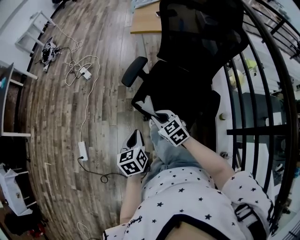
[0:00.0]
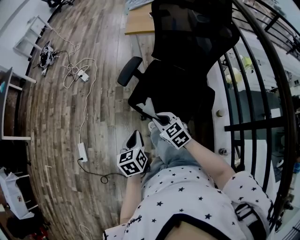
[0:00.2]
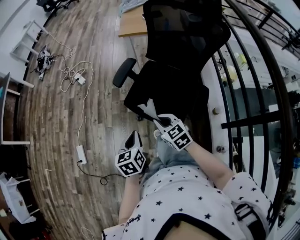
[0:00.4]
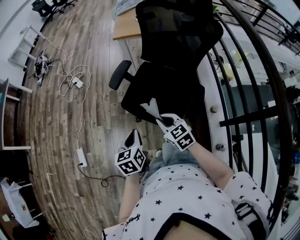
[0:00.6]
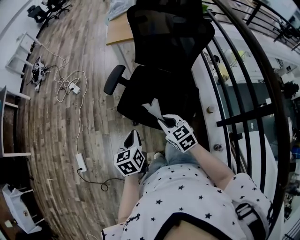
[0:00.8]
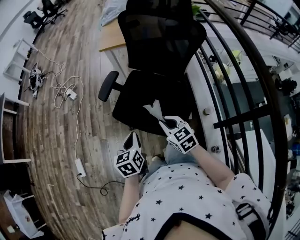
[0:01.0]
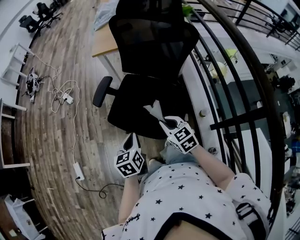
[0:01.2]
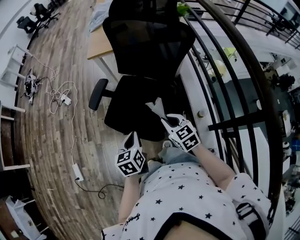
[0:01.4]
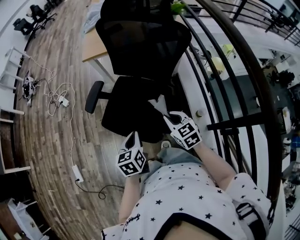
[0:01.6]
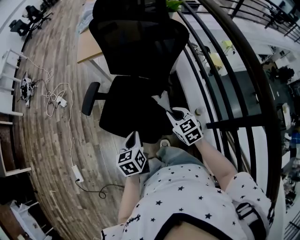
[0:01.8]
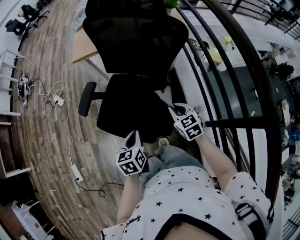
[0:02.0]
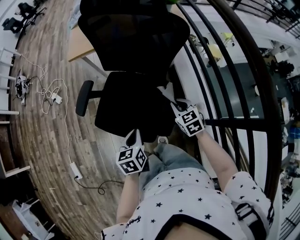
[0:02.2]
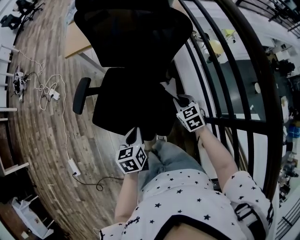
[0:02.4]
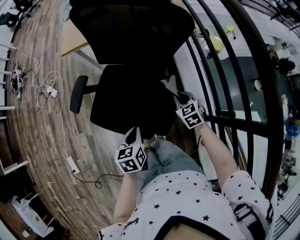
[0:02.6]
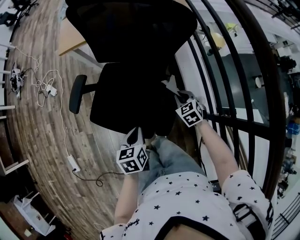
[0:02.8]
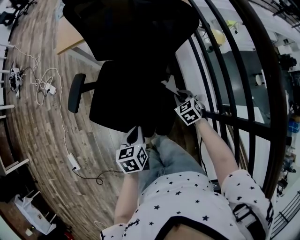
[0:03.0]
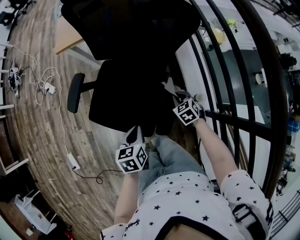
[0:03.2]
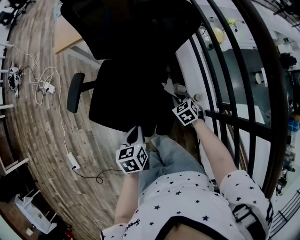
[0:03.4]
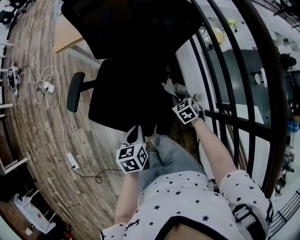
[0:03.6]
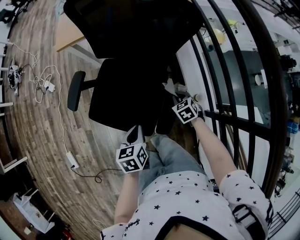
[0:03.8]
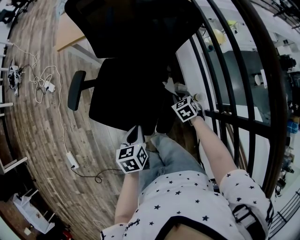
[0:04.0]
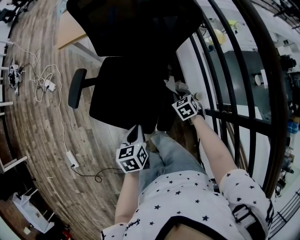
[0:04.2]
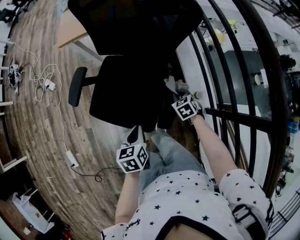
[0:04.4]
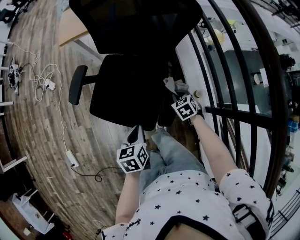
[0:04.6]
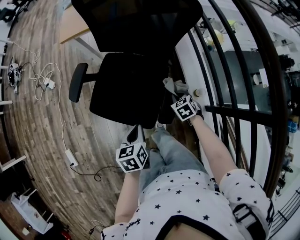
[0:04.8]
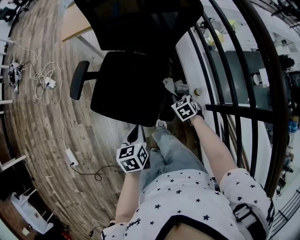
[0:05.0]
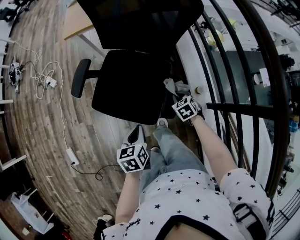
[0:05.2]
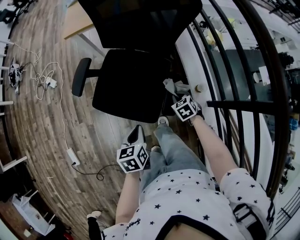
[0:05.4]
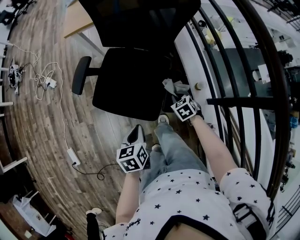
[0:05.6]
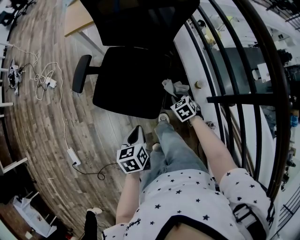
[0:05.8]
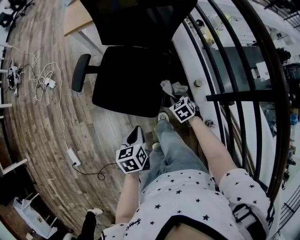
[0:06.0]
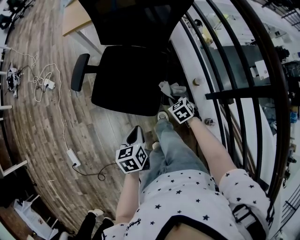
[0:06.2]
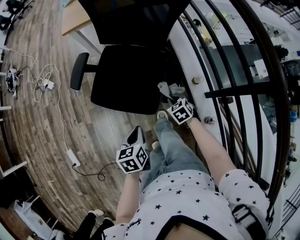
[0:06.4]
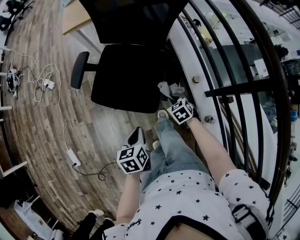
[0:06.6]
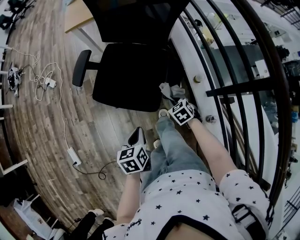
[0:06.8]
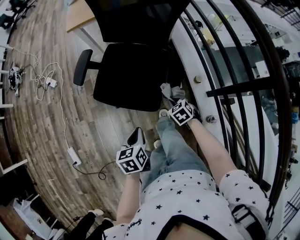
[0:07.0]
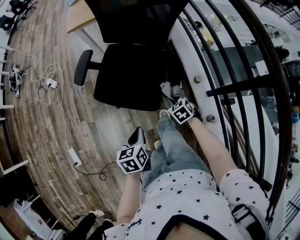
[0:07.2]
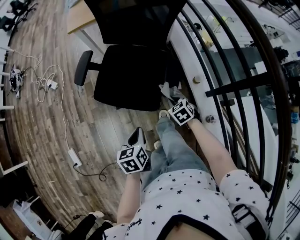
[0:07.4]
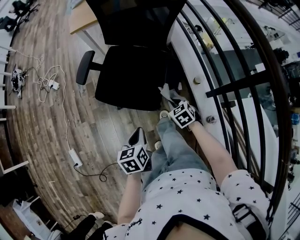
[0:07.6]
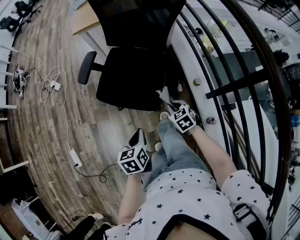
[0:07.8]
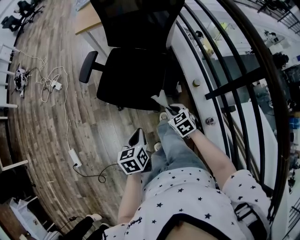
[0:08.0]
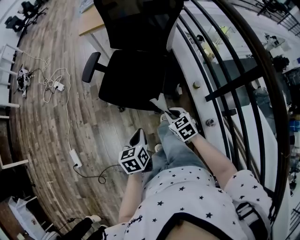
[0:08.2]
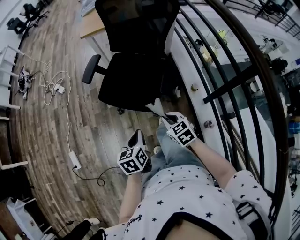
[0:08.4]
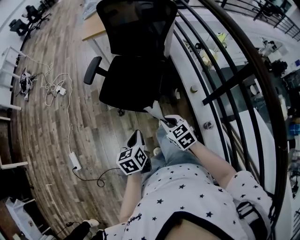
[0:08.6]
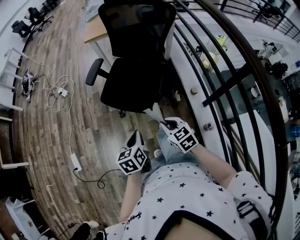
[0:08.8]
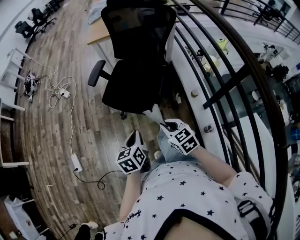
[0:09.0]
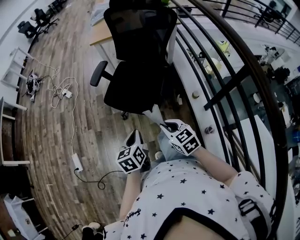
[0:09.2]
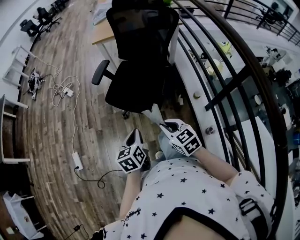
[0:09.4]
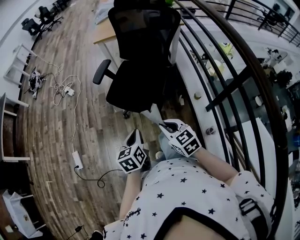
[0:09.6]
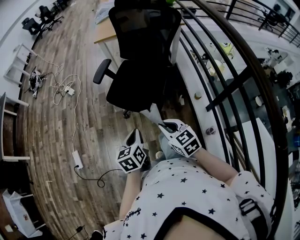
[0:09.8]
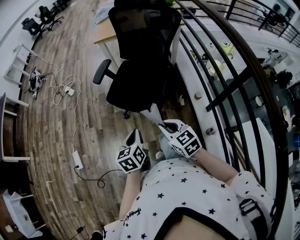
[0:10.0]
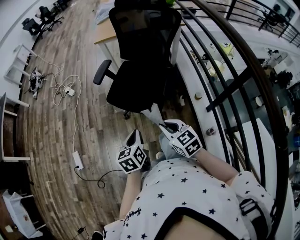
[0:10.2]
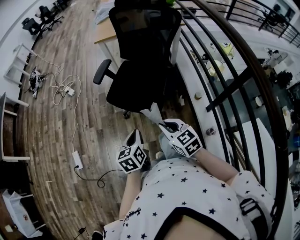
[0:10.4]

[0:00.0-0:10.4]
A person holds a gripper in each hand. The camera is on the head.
0:00.0 to 0:01.4: The grippers both shift to the right by some 20 cm.
0:01.4 to 0:03.0: The left gripper is displaced to the right, downward and forward by some 15 cm; the right gripper travels downward, to the right and forward by some 25 cm, and rotates roughly 20 degrees.
0:03.0 to 0:04.4: The grippers stay close to where they were, moving slightly.
0:04.4 to 0:06.0: The grippers both shift backward and to the left by approximately 15 cm.
0:06.0 to 0:07.4: Both grippers move backward, approximately 5 cm.
0:07.4 to 0:09.0: The left gripper goes some 10 cm backward and upward. Meanwhile the right gripper shifts approximately 25 cm backward, upward and to the left, and rotates about 20 degrees.
0:09.0 to 0:10.4: There are only small adjustments of the grippers.

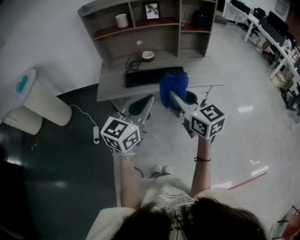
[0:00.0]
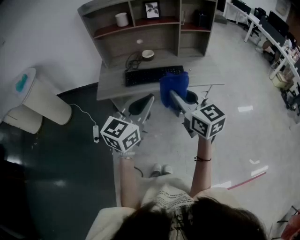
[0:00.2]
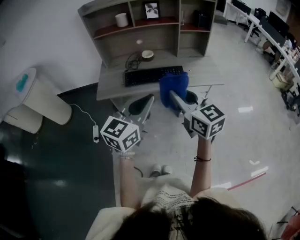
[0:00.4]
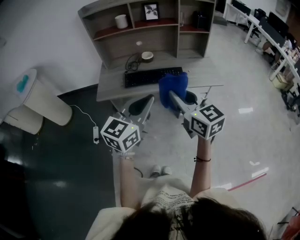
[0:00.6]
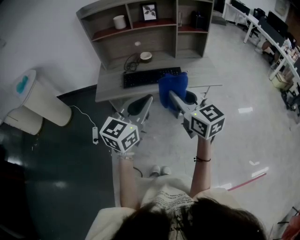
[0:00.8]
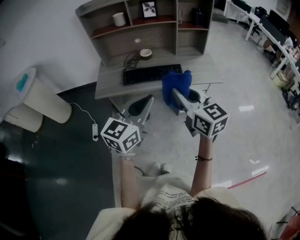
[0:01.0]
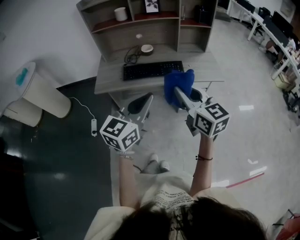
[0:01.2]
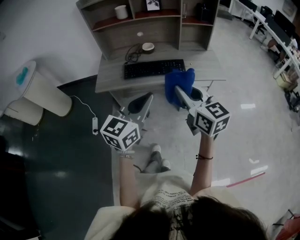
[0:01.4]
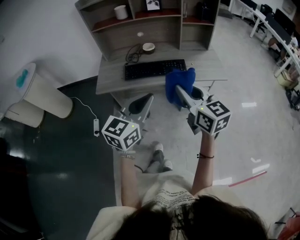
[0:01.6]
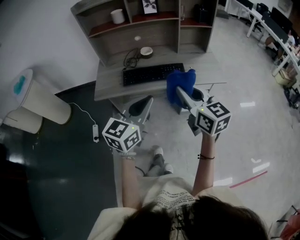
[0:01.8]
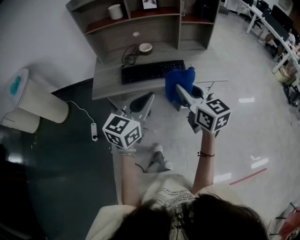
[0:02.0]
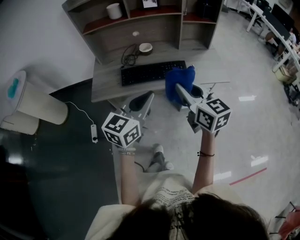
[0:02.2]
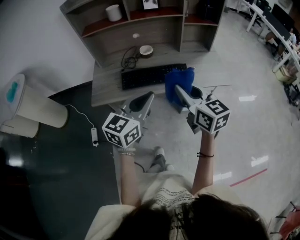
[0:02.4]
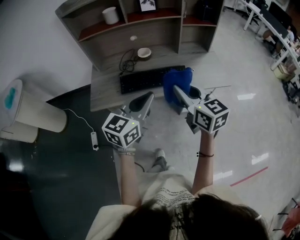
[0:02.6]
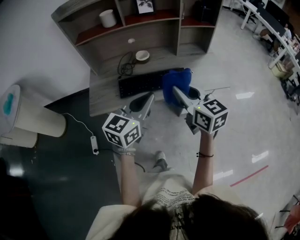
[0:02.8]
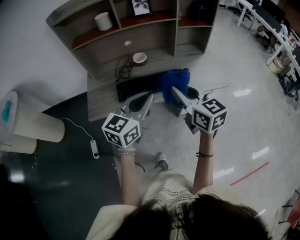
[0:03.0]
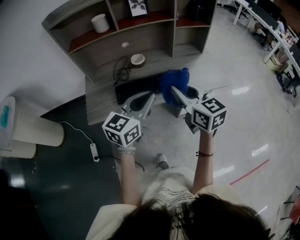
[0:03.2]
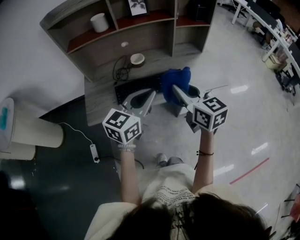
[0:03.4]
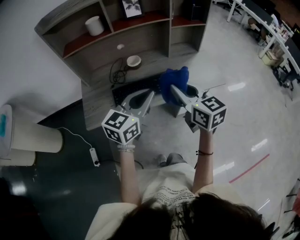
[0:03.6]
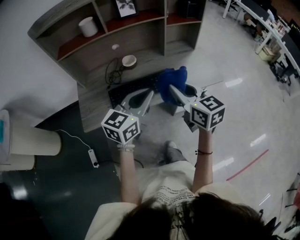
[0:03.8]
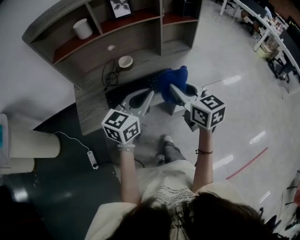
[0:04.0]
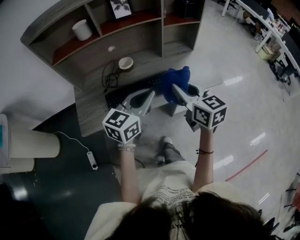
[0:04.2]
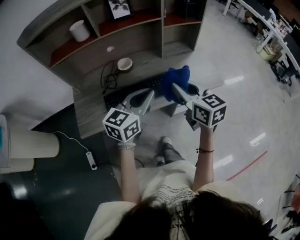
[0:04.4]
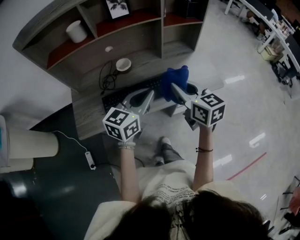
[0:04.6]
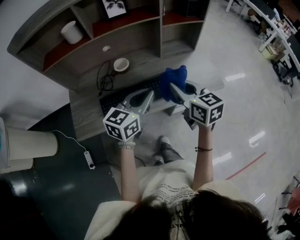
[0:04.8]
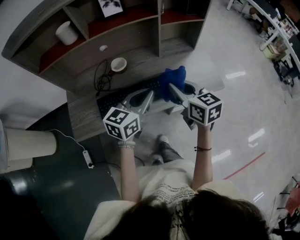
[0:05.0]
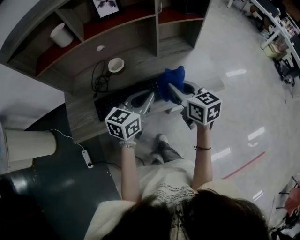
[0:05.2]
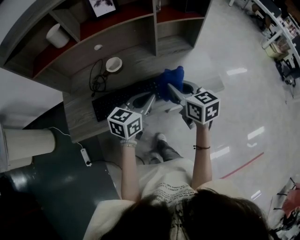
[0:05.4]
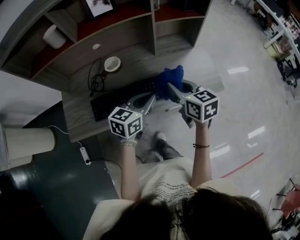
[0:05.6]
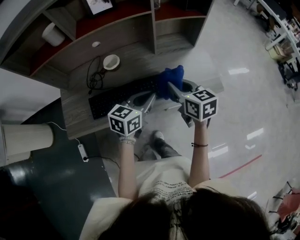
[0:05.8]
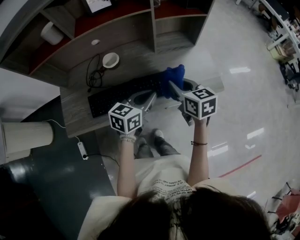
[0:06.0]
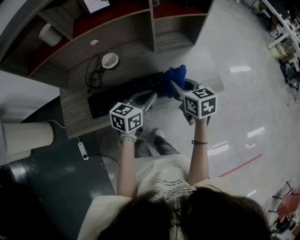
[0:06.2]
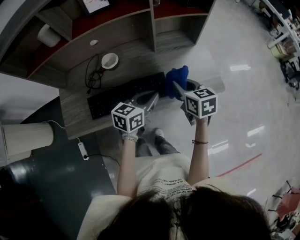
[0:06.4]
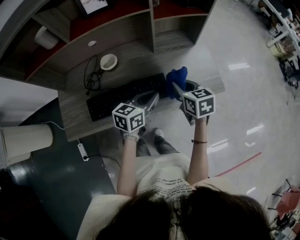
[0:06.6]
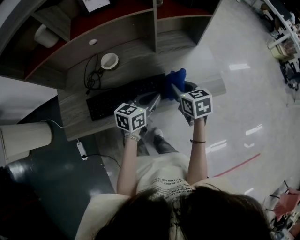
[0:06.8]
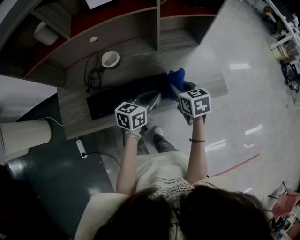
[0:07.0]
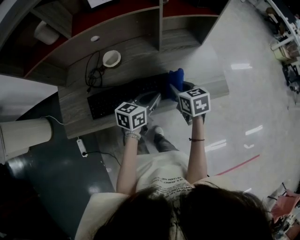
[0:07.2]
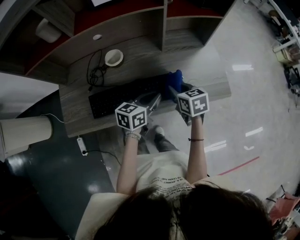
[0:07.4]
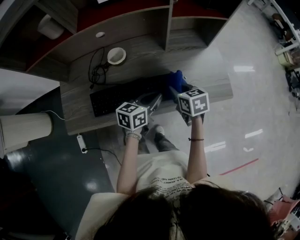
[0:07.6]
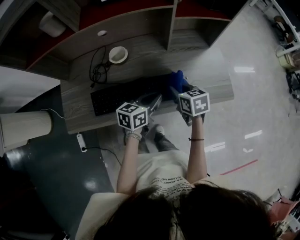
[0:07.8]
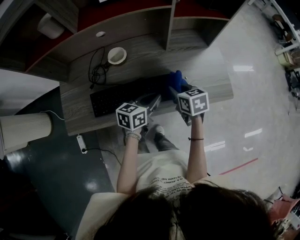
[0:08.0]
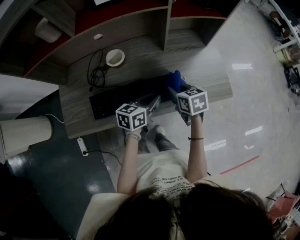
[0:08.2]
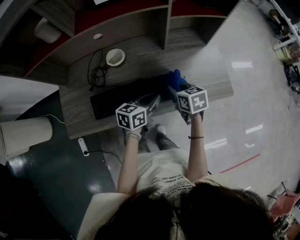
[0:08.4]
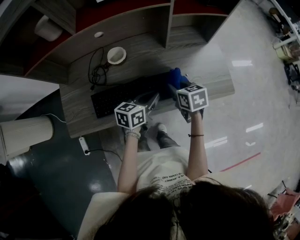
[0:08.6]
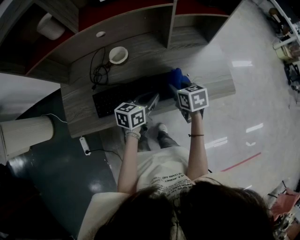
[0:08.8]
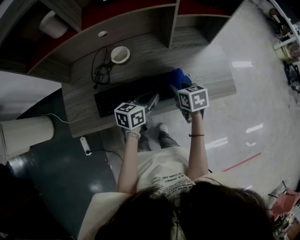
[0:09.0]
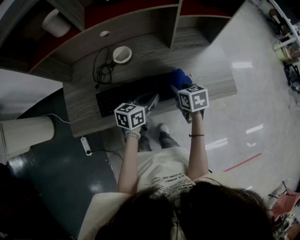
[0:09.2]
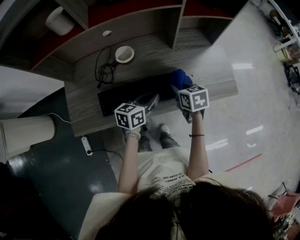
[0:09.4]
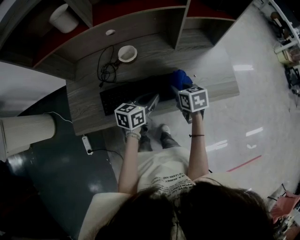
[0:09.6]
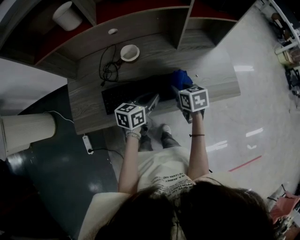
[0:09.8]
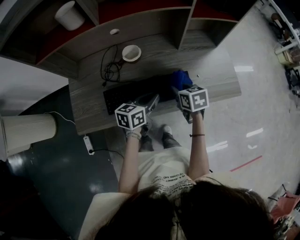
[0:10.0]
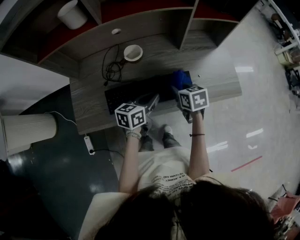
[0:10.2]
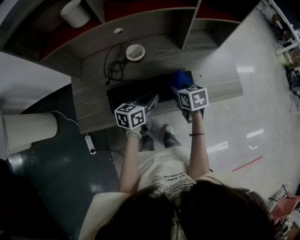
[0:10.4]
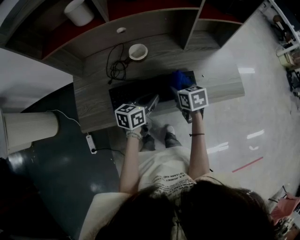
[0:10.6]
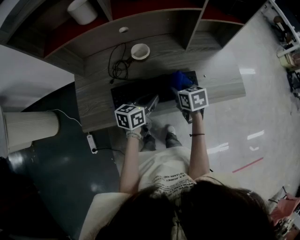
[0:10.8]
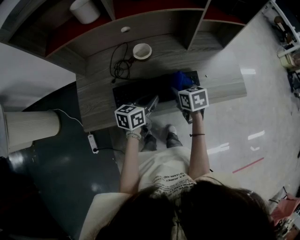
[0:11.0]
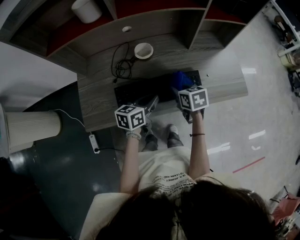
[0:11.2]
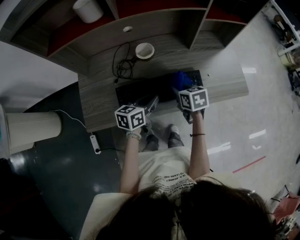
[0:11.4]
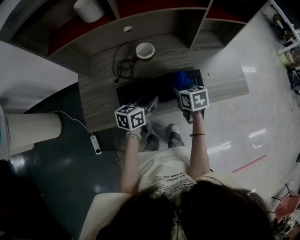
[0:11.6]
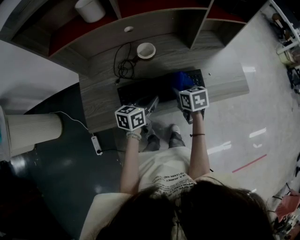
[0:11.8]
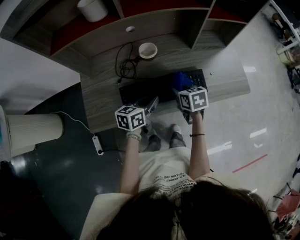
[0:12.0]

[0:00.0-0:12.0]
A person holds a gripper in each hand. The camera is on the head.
0:00.0 to 0:01.6: The grippers stay close to where they were, moving slightly.
0:01.6 to 0:03.0: The two grippers go some 15 cm forward.
0:03.0 to 0:04.4: The two grippers go about 10 cm forward.
0:04.4 to 0:06.0: The right gripper goes approximately 20 cm forward, downward and to the right. Meanwhile the left gripper is displaced downward, forward and to the right by roughly 20 cm.
0:06.0 to 0:07.6: The left gripper heads downward, covering roughly 5 cm; the right gripper heads downward, covering approximately 10 cm.
0:07.6 to 0:09.0: There are only small adjustments of the grippers.
0:09.0 to 0:10.4: The two grippers go some 5 cm to the left.
0:10.4 to 0:12.0: Both grippers travel together to the left, about 5 cm.

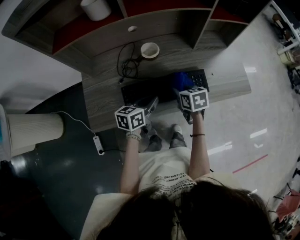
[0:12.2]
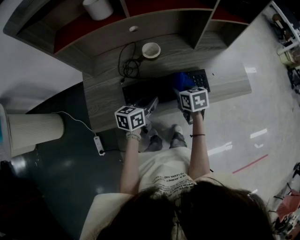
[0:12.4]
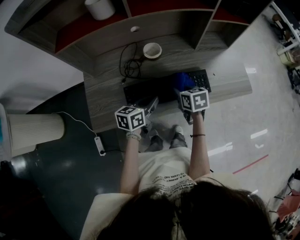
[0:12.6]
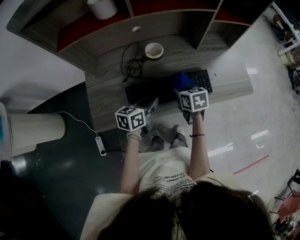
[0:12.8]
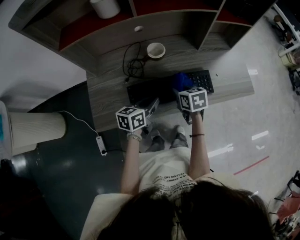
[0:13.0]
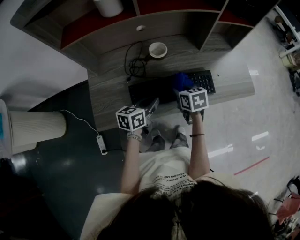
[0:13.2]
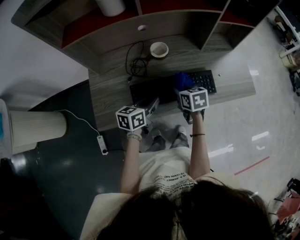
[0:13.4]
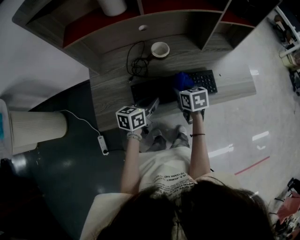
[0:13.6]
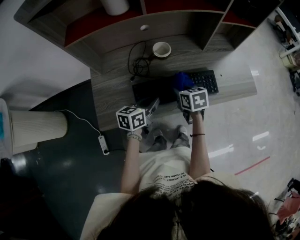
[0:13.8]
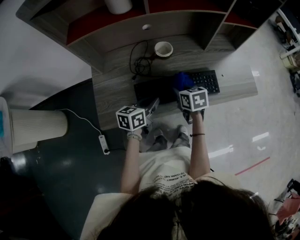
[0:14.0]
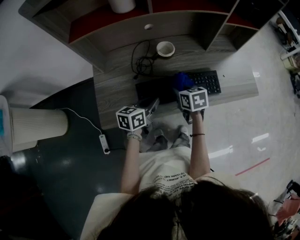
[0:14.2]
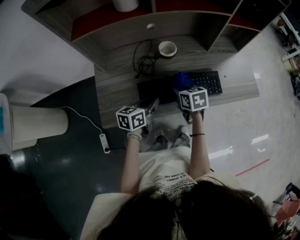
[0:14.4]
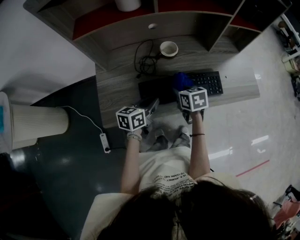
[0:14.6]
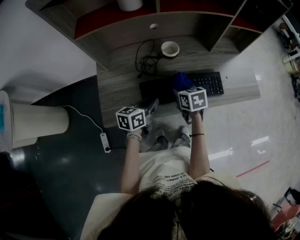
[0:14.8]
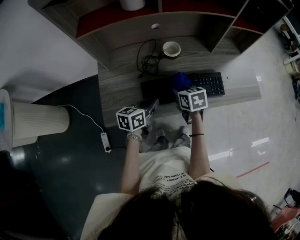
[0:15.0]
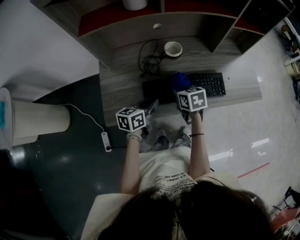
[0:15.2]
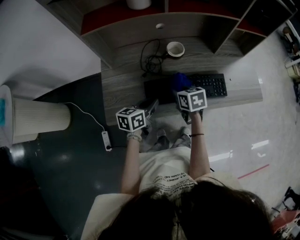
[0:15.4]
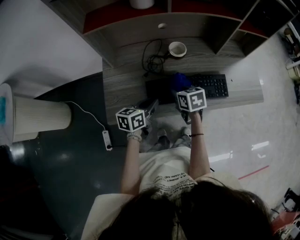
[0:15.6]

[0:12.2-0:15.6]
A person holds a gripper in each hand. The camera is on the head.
0:12.2 to 0:13.8: The grippers both shift to the left by some 5 cm.
0:13.8 to 0:15.6: The grippers both shift to the left by about 5 cm.
